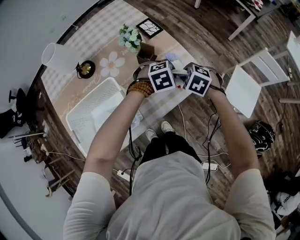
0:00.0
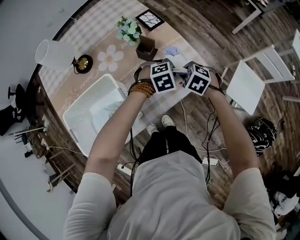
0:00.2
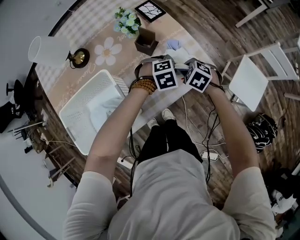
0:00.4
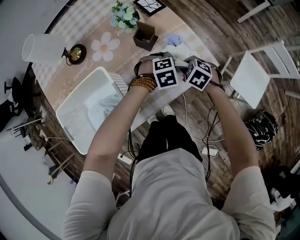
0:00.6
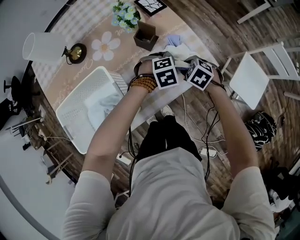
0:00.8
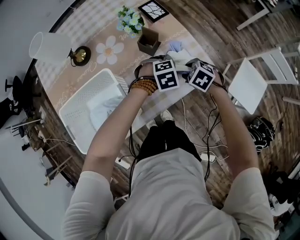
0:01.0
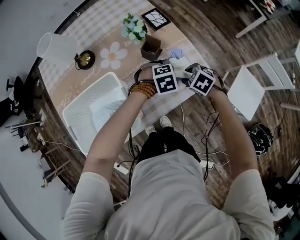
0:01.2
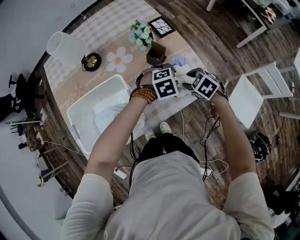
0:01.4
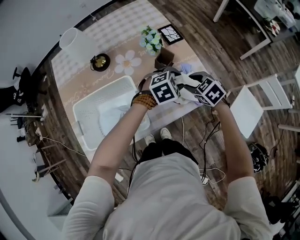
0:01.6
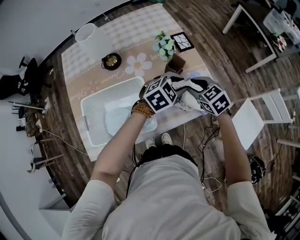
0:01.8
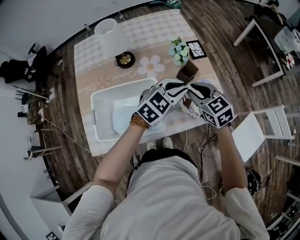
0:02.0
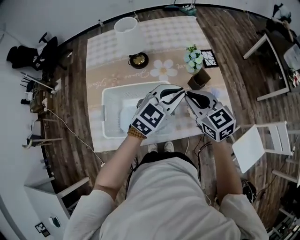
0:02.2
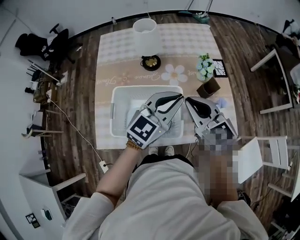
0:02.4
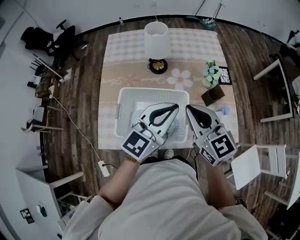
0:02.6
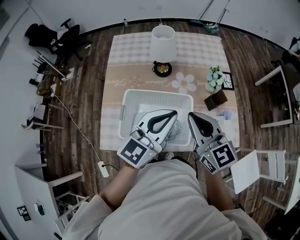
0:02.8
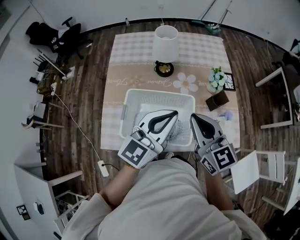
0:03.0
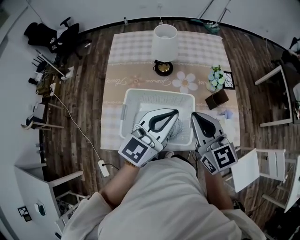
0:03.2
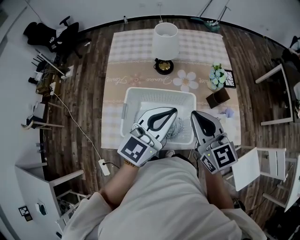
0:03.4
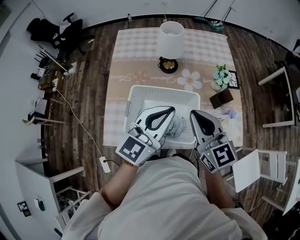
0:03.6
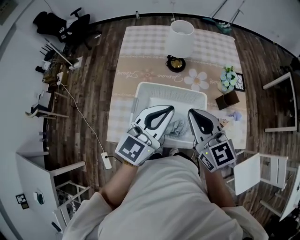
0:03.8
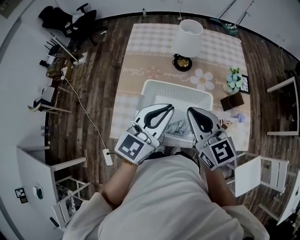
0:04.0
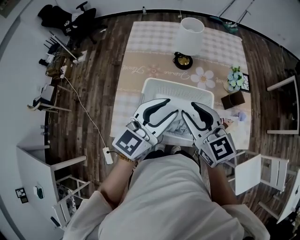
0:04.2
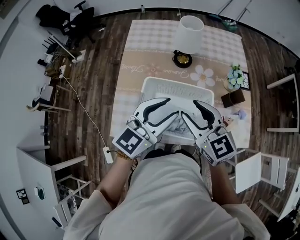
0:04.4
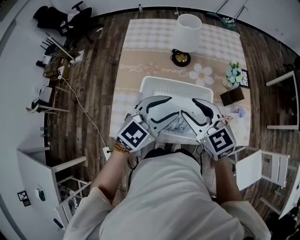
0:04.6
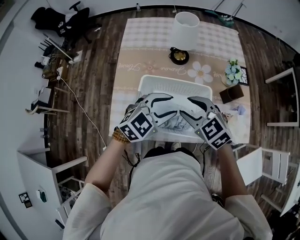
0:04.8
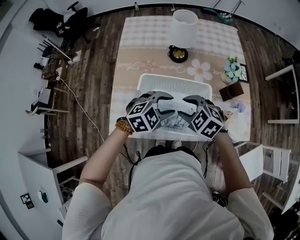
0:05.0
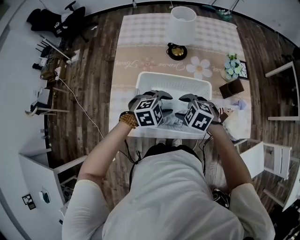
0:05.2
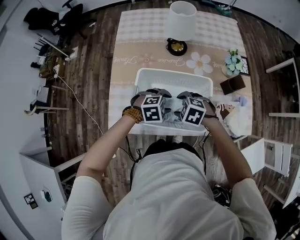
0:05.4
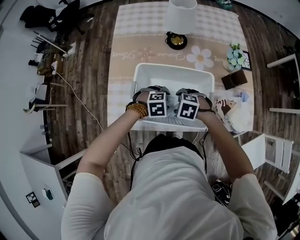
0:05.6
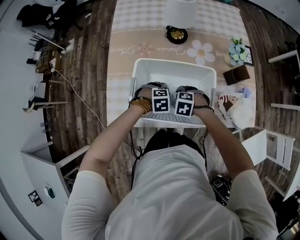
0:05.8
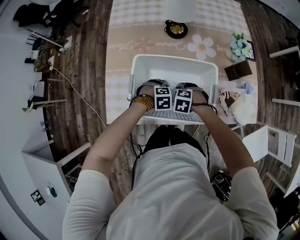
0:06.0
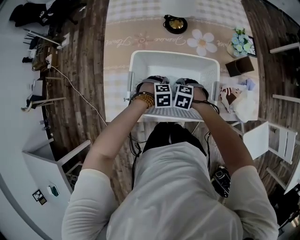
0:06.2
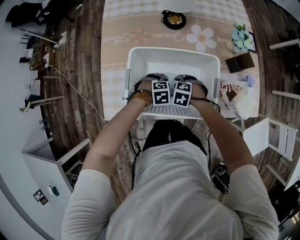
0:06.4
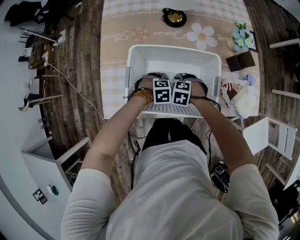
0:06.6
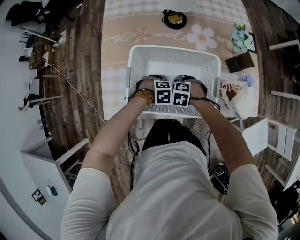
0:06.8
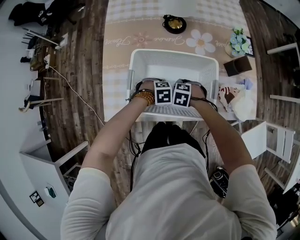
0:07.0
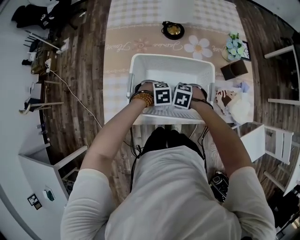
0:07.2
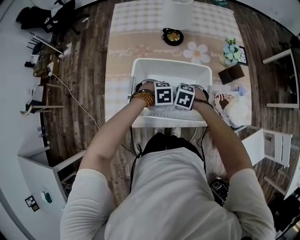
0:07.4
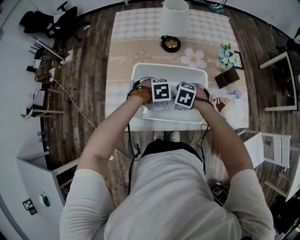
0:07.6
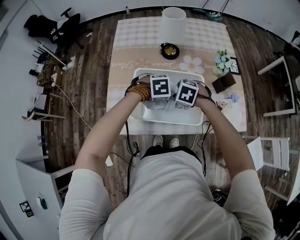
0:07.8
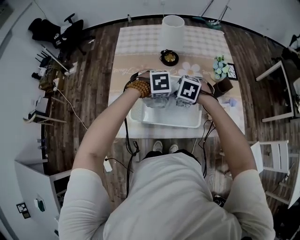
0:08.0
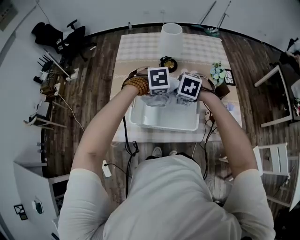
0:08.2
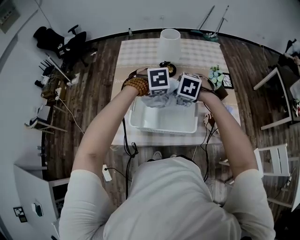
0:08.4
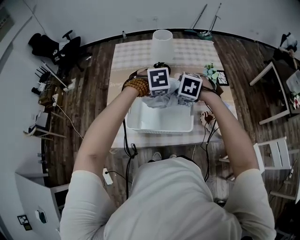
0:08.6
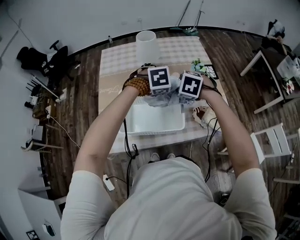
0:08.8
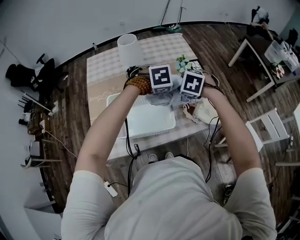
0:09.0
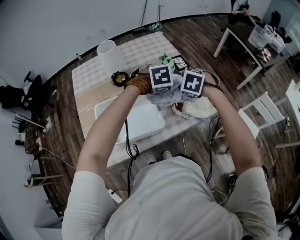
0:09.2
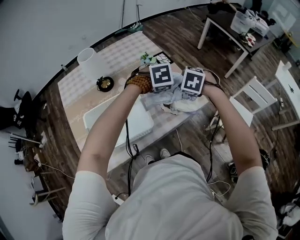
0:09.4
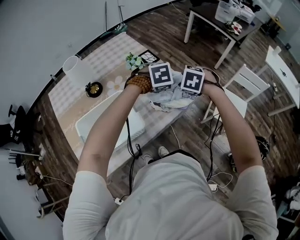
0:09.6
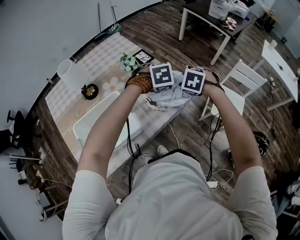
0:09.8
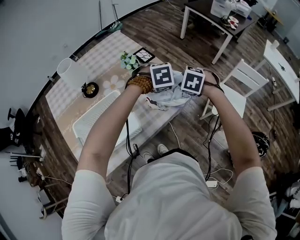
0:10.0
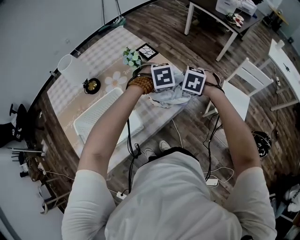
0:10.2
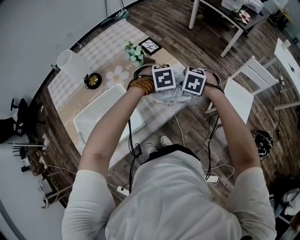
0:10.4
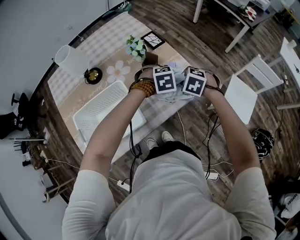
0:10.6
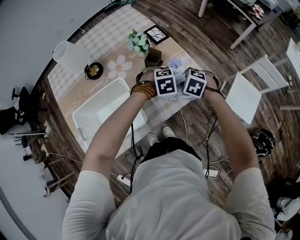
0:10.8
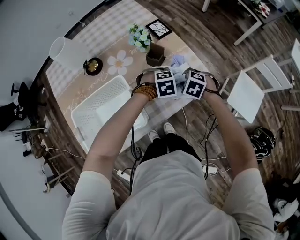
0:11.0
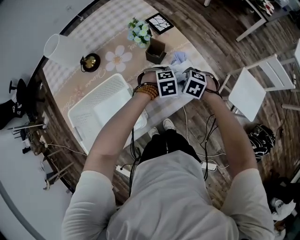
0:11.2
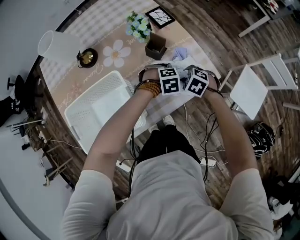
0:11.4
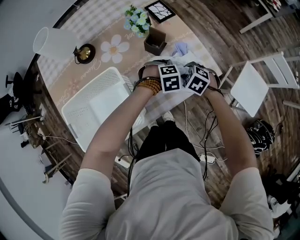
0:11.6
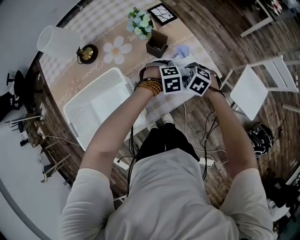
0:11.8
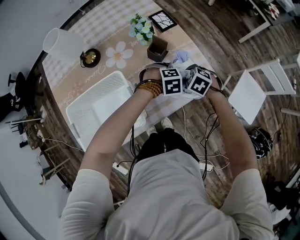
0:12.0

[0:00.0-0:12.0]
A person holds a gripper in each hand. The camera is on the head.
0:00.0 to 0:01.6: The left gripper reaches approximately 10 cm downward, then returns, and opens its fingers. The right gripper goes downward and returns, about 10 cm each way, and opens its fingers.
0:01.6 to 0:03.0: The right gripper shifts by roughly 35 cm, tips its fingers upward by approximately 50 degrees, and closes its fingers, while the left gripper shifts by about 40 cm, tilts its fingers about 50 degrees upward, and closes.
0:03.0 to 0:04.4: The two grippers go roughly 10 cm to the left. The left gripper opens up, while the right gripper opens its fingers.
0:04.4 to 0:06.0: Both grippers move downward, about 40 cm. The left gripper points its fingers approximately 70 degrees further downward, and opens up; the right gripper angles its fingers downward, by about 60 degrees, and opens up.
0:06.0 to 0:07.6: The grippers both shift upward by some 10 cm. The right gripper closes its fingers. The left gripper closes its fingers.
0:07.6 to 0:09.0: The two grippers go approximately 20 cm upward. The left gripper turns by approximately 20 degrees. Meanwhile the right gripper swivels some 20 degrees.
0:09.0 to 0:10.4: The left gripper shifts by some 25 cm, and turns by roughly 20 degrees. Meanwhile the right gripper ends up approximately 25 cm from where it was, and rotates about 20 degrees.
0:10.4 to 0:12.0: The two grippers go roughly 15 cm downward.

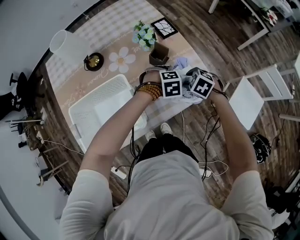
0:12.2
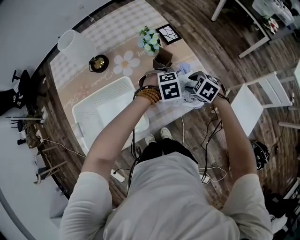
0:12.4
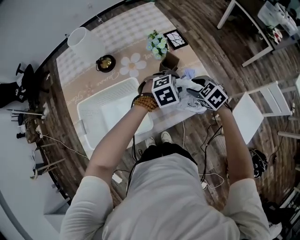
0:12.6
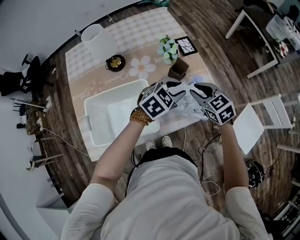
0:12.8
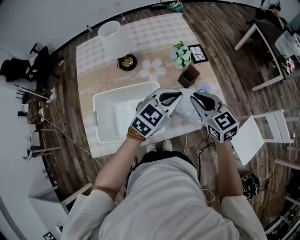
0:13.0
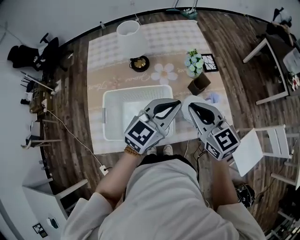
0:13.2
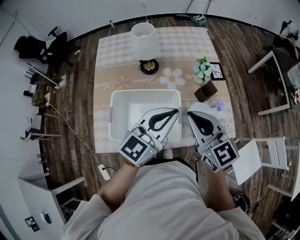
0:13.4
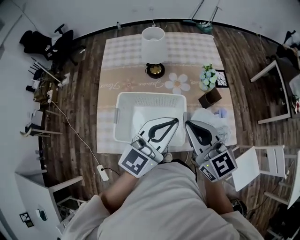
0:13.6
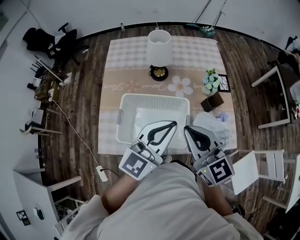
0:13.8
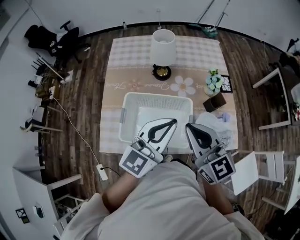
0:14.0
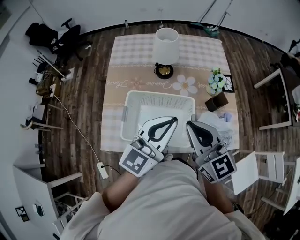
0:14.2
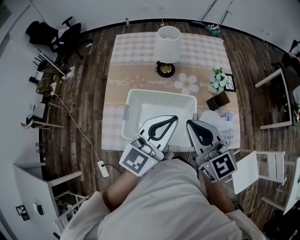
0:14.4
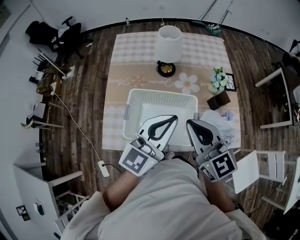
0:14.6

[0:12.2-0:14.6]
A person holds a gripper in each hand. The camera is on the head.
0:12.2 to 0:13.4: The two grippers go approximately 30 cm upward. The right gripper tips its fingers upward by some 60 degrees, and closes its fingers, while the left gripper angles its fingers upward, by about 70 degrees, and closes up.
0:13.4 to 0:14.6: Both grippers travel together to the left, some 10 cm.

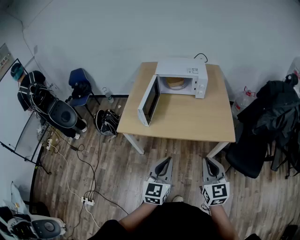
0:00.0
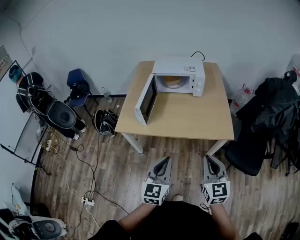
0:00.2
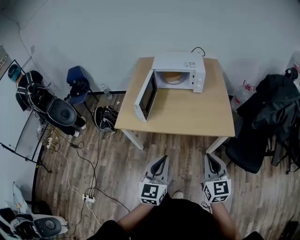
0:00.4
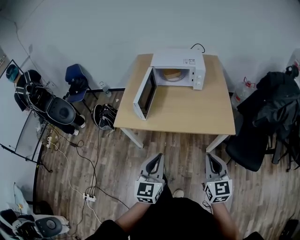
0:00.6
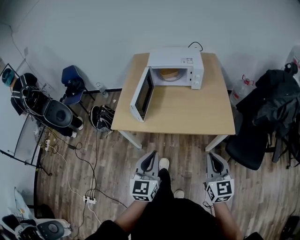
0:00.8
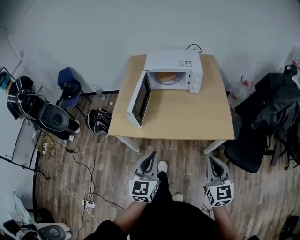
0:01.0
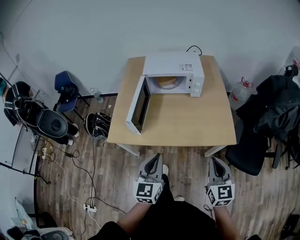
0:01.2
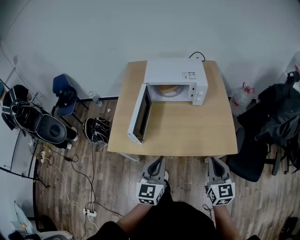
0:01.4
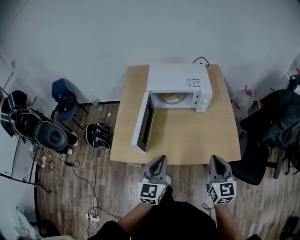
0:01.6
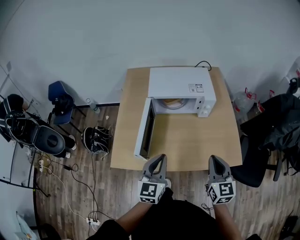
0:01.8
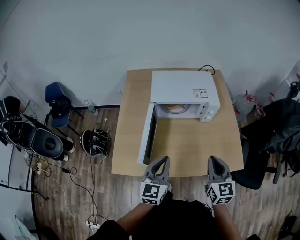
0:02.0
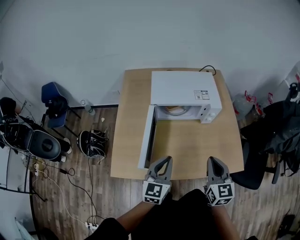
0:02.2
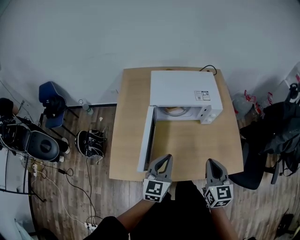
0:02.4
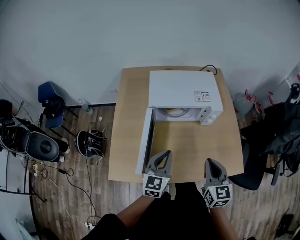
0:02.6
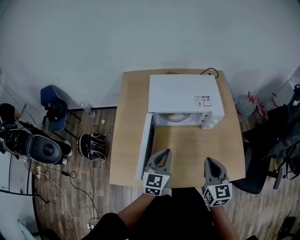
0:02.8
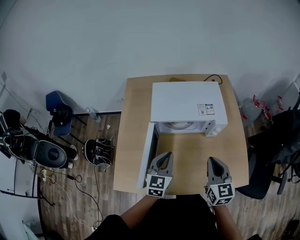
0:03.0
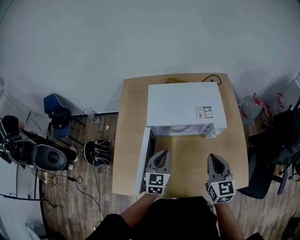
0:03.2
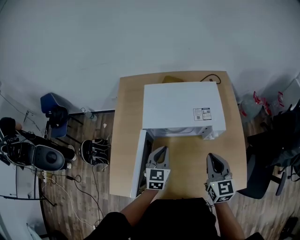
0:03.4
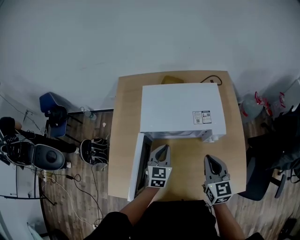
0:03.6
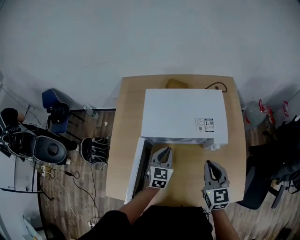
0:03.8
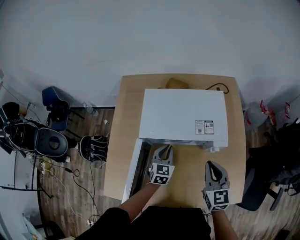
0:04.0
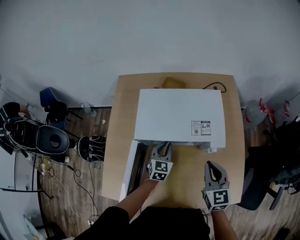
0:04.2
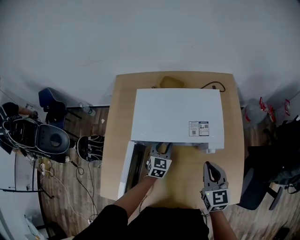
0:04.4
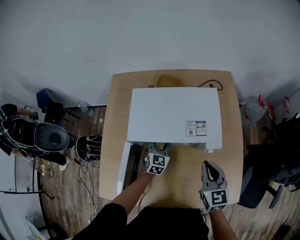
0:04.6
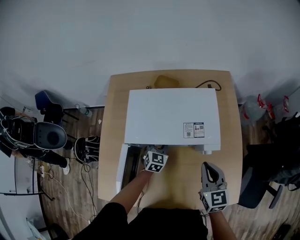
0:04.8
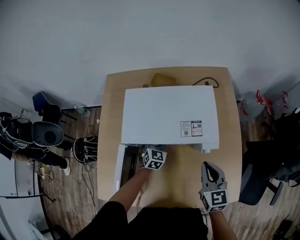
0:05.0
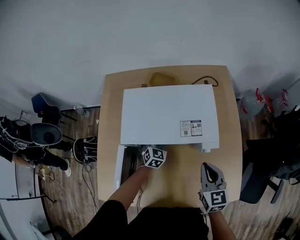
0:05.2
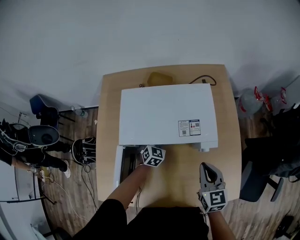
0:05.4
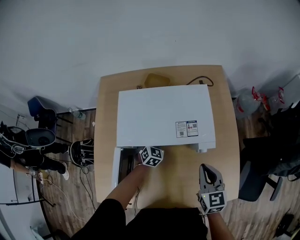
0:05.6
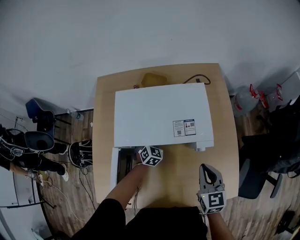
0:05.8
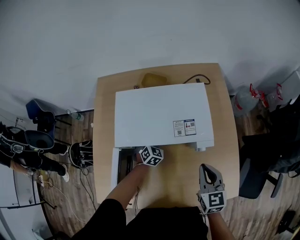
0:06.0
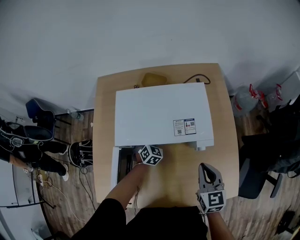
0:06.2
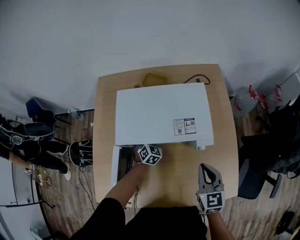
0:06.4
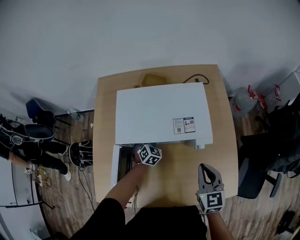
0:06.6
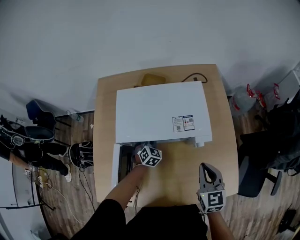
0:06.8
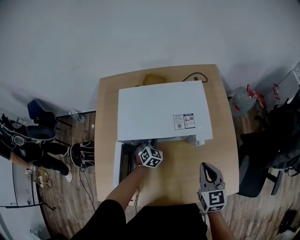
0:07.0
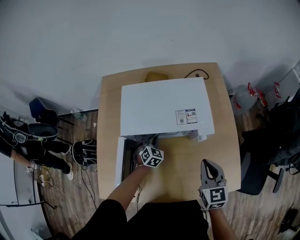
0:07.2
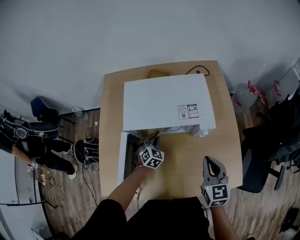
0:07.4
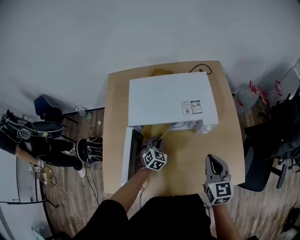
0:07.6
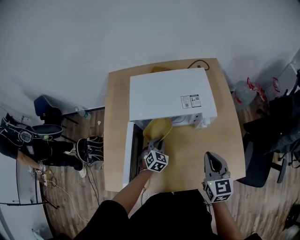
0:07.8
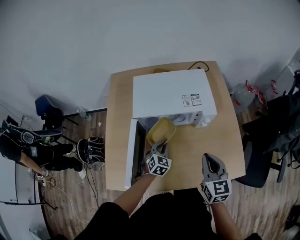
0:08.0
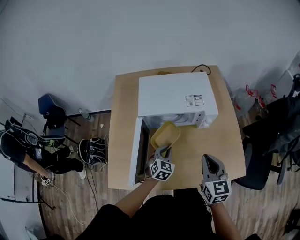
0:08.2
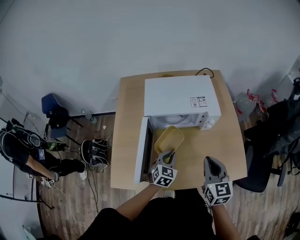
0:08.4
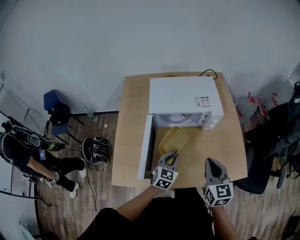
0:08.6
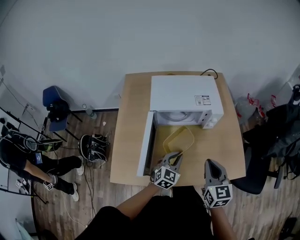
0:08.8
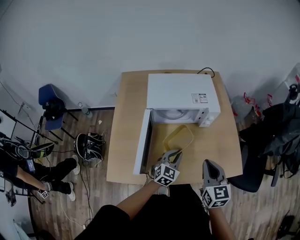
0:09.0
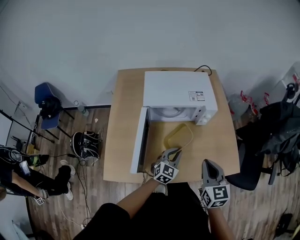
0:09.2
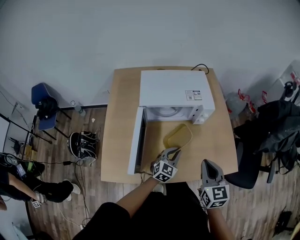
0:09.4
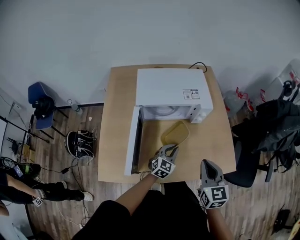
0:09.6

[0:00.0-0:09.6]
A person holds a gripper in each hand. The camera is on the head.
0:00.0 to 0:01.6: The grippers both shift forward by roughly 25 cm.
0:01.6 to 0:03.2: Both grippers travel together forward, approximately 25 cm.
0:03.2 to 0:04.8: The right gripper moves forward, downward and to the right, some 10 cm, while the left gripper moves forward and downward, about 25 cm, and opens its fingers.
0:04.8 to 0:06.4: The left gripper ends up roughly 5 cm from where it was, and closes.
0:06.4 to 0:08.0: The right gripper heads backward, covering some 10 cm. The left gripper shifts roughly 20 cm backward.
0:08.0 to 0:09.6: The right gripper travels backward by roughly 10 cm; the left gripper moves to the right and backward, some 10 cm, and swivels approximately 20 degrees.
